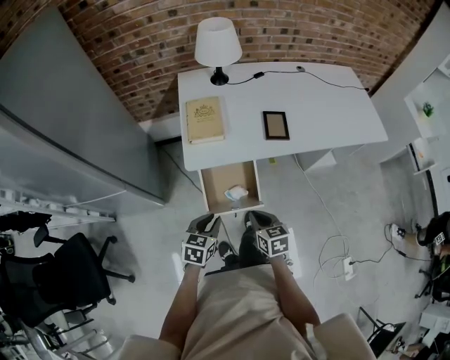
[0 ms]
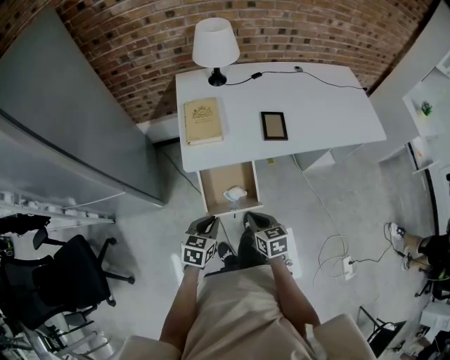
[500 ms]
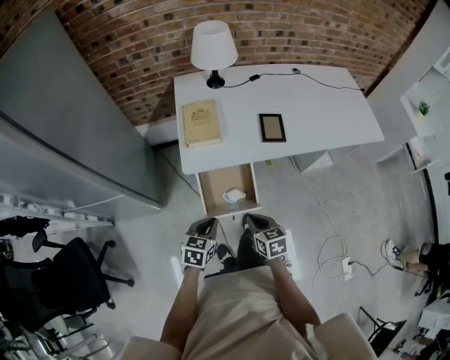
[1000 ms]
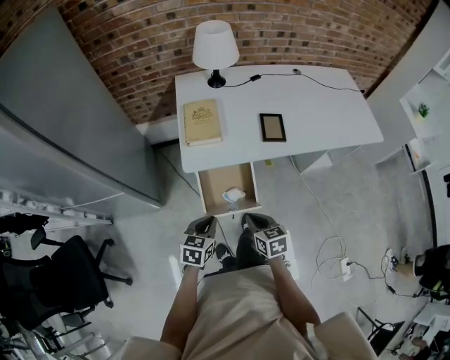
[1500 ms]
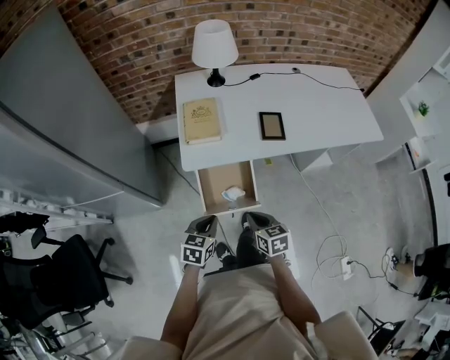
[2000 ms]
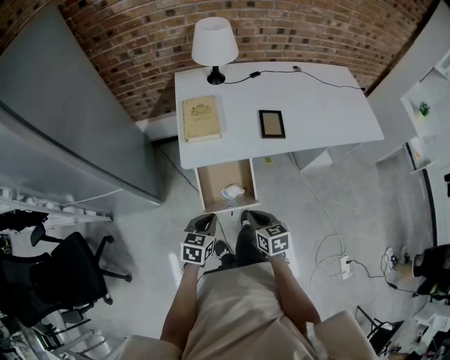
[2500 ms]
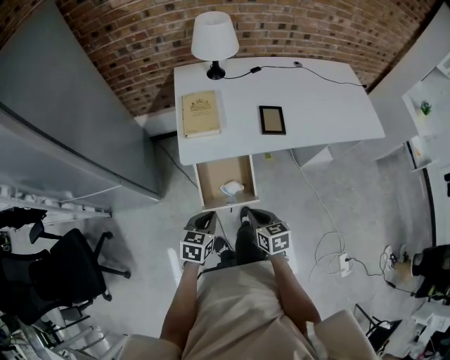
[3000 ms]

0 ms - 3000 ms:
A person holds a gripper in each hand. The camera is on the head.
0 ms - 1500 ms: Both grippers stay about where they are.
1500 ms - 3000 ms: There are only small adjustments of the grippers.

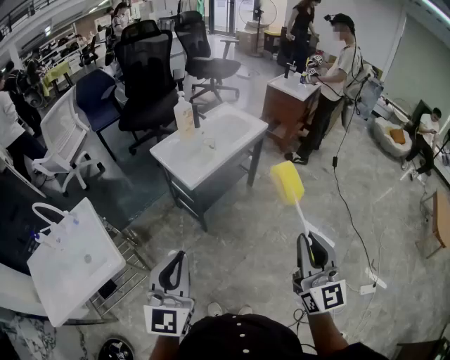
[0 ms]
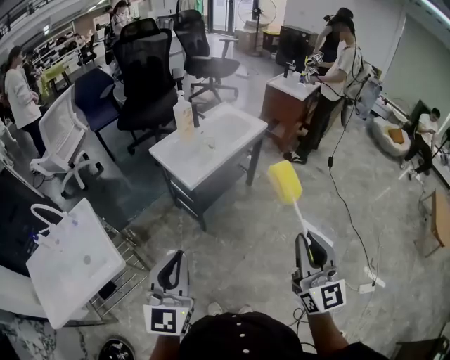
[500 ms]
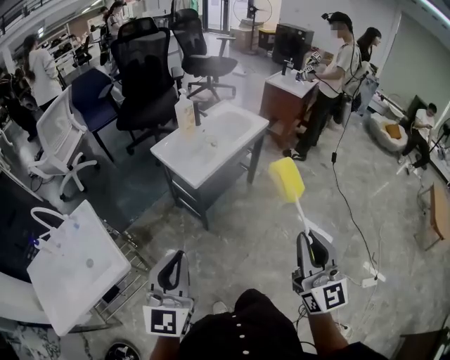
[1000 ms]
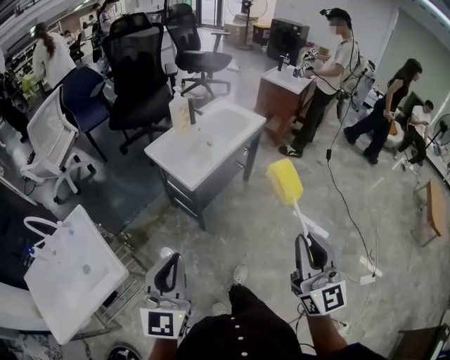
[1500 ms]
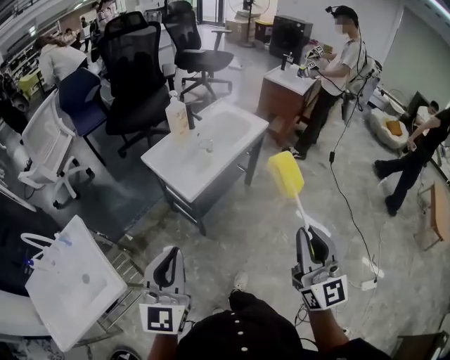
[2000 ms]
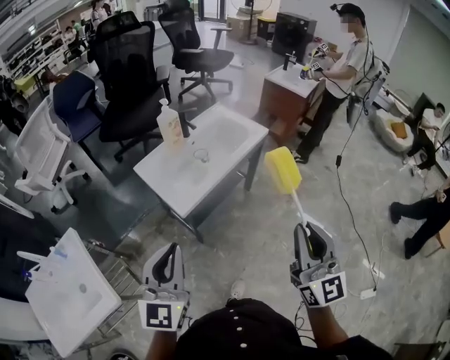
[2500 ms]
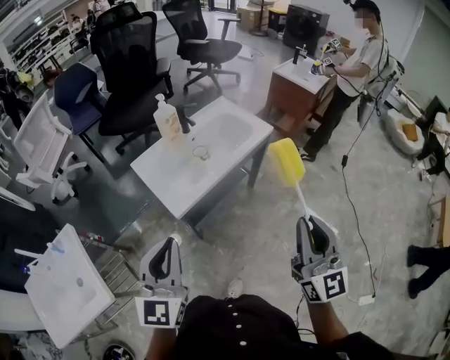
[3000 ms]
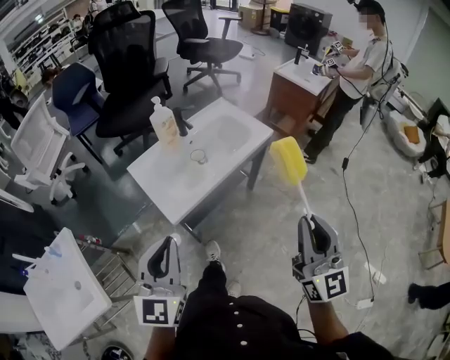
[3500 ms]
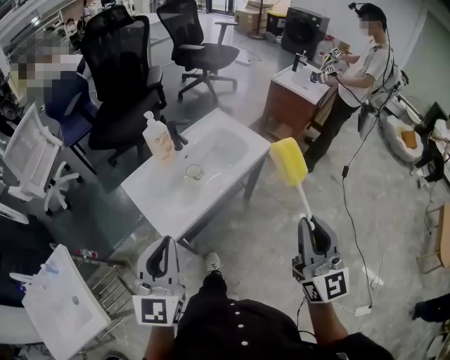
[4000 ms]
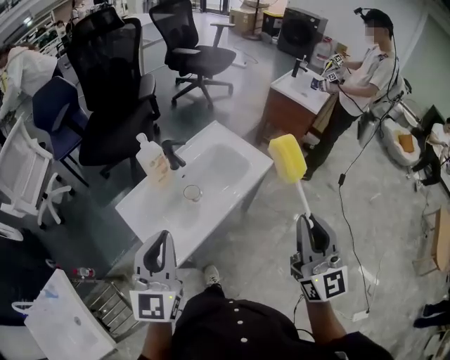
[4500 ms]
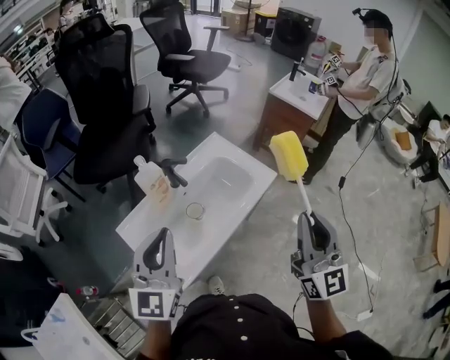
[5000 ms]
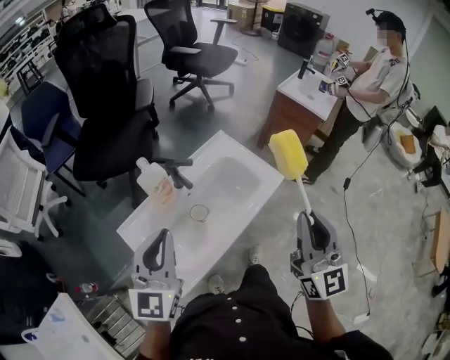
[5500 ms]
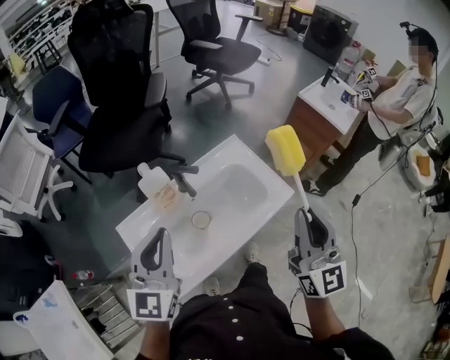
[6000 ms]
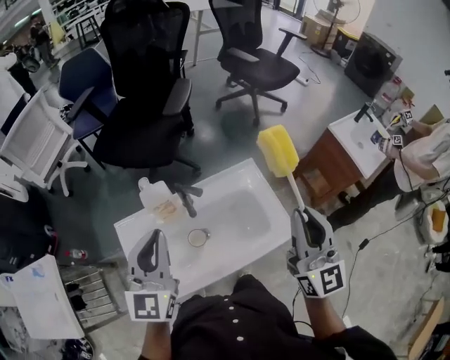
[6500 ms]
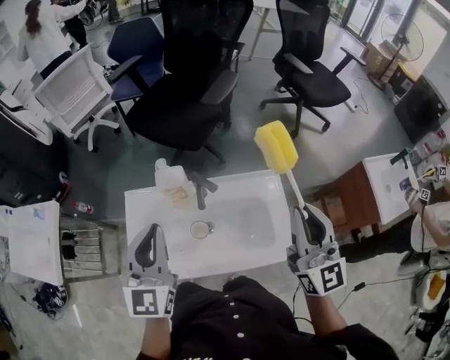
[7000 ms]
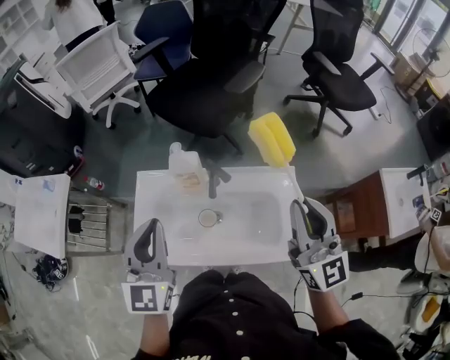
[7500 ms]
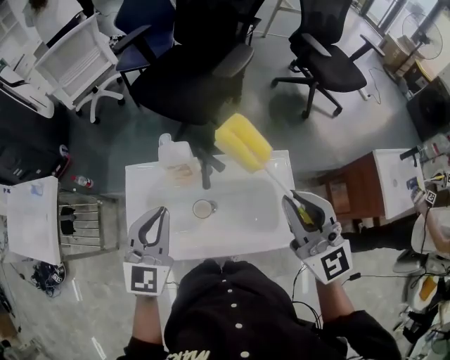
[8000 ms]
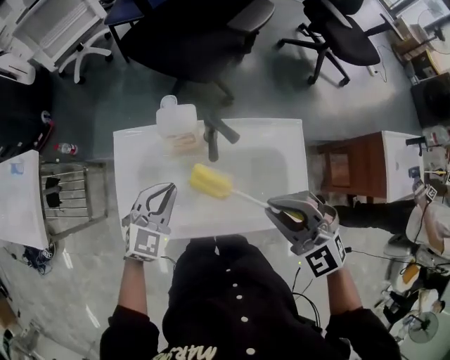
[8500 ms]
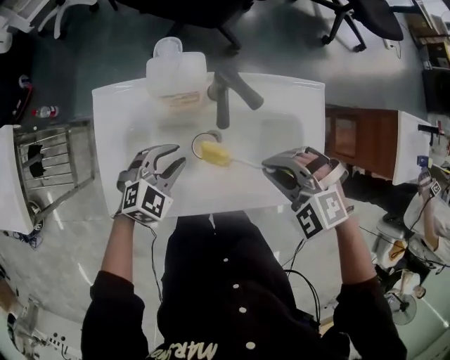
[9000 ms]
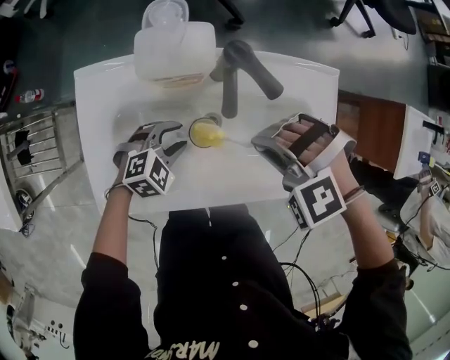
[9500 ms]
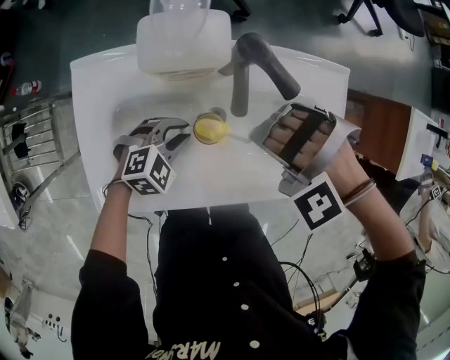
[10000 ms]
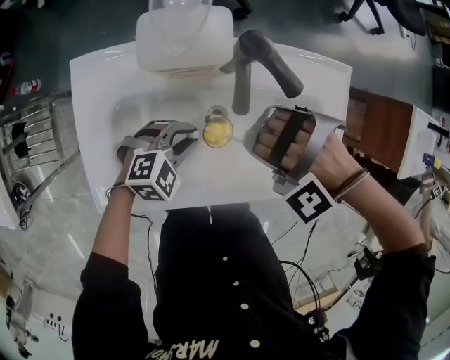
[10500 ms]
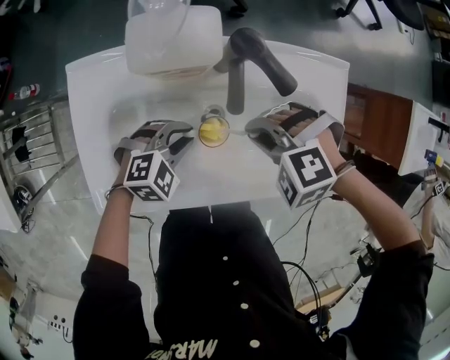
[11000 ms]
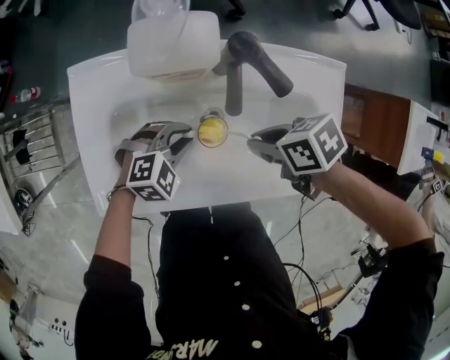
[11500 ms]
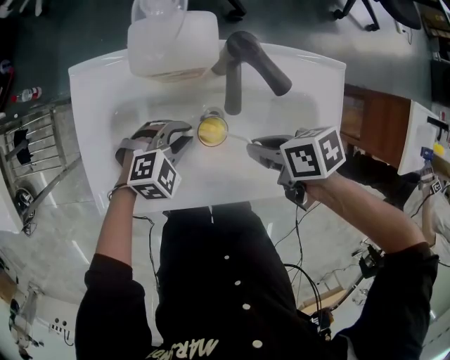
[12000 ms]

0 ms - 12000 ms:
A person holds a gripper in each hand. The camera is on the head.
0 ms - 2000 ms: Both grippers travel together forward, approximately 15 cm.
2000 ms - 4000 ms: Both grippers travel together forward, some 25 cm.
4000 ms - 6000 ms: The grippers both shift forward by about 35 cm.
6000 ms - 8000 ms: The left gripper shifts by approximately 5 cm, and rotates some 30 degrees, while the right gripper changes place by approximately 20 cm, and swivels some 50 degrees.
8000 ms - 10000 ms: Both grippers move downward, approximately 35 cm. The right gripper tips its fingers downward by about 80 degrees, while the left gripper angles its fingers downward, by about 40 degrees, and opens, then closes once more.
10000 ms - 12000 ms: The right gripper moves downward, approximately 5 cm, and rolls clockwise, seen from behind, by about 130 degrees.

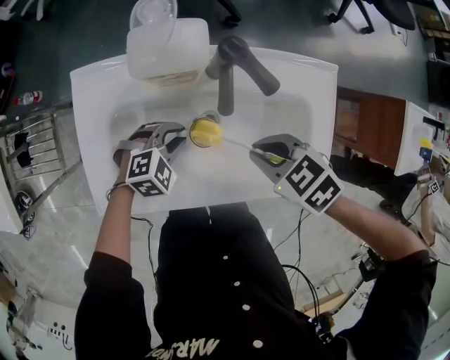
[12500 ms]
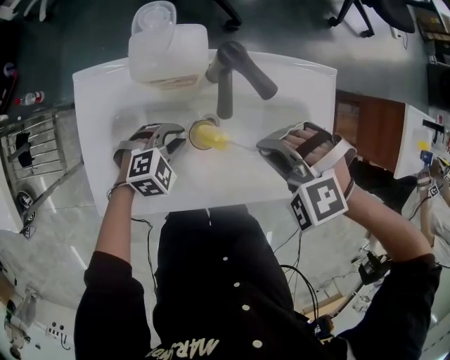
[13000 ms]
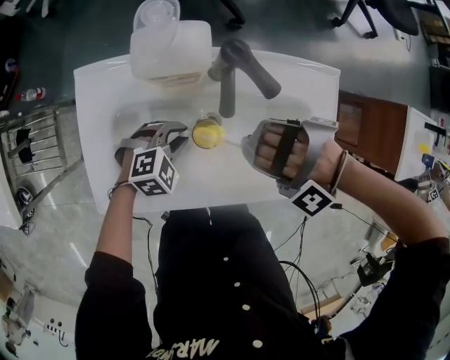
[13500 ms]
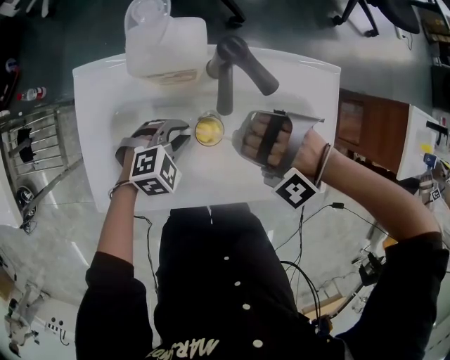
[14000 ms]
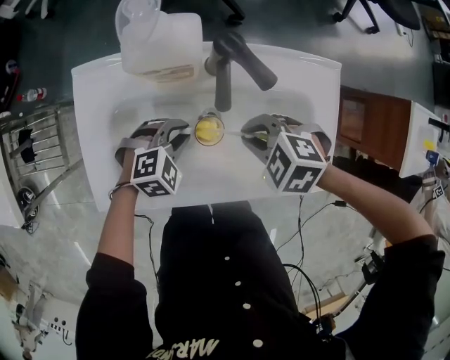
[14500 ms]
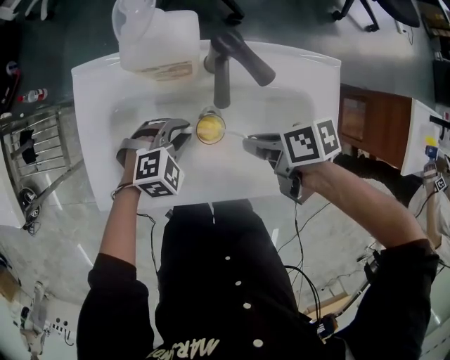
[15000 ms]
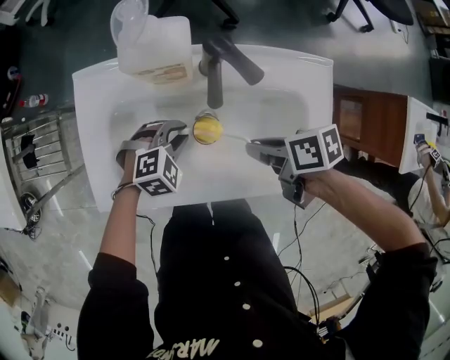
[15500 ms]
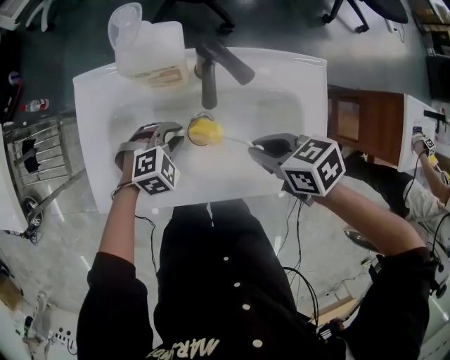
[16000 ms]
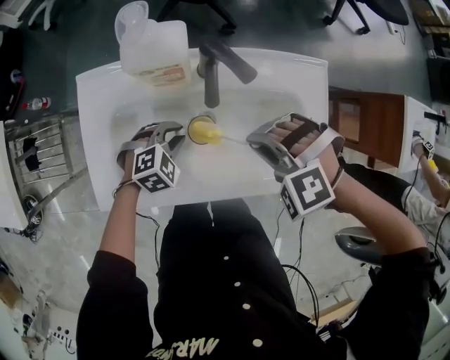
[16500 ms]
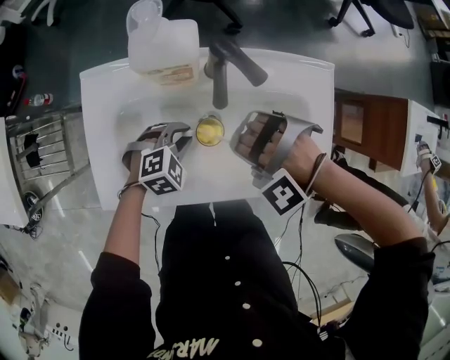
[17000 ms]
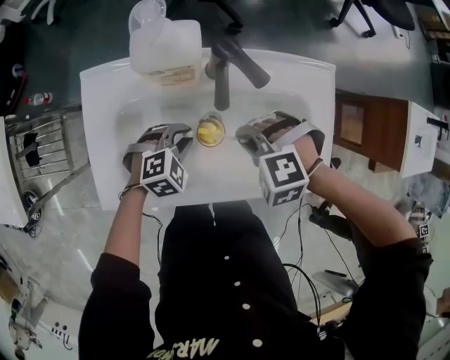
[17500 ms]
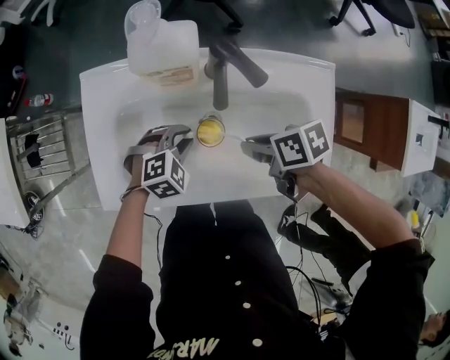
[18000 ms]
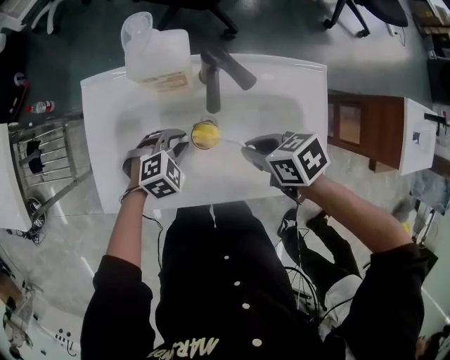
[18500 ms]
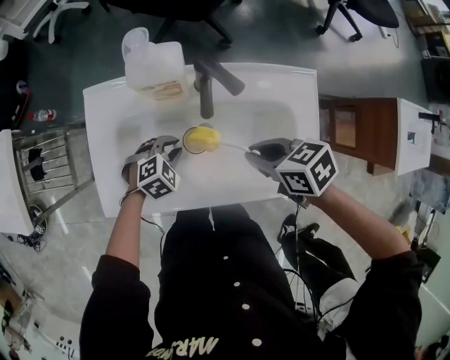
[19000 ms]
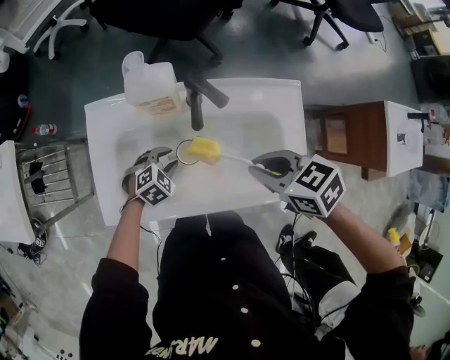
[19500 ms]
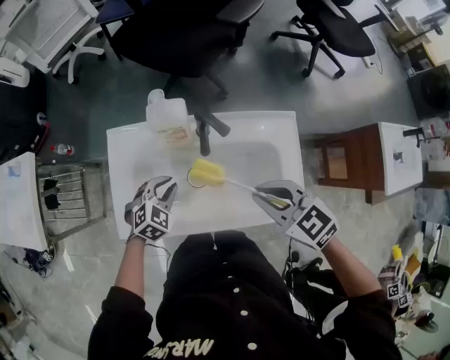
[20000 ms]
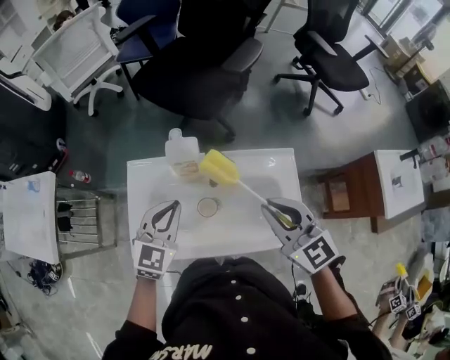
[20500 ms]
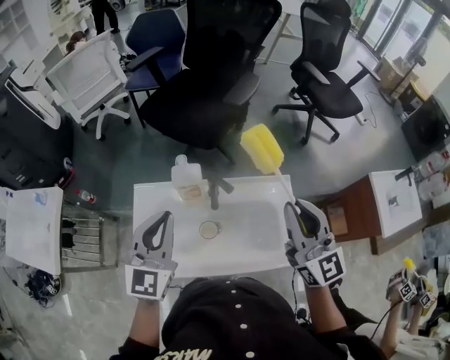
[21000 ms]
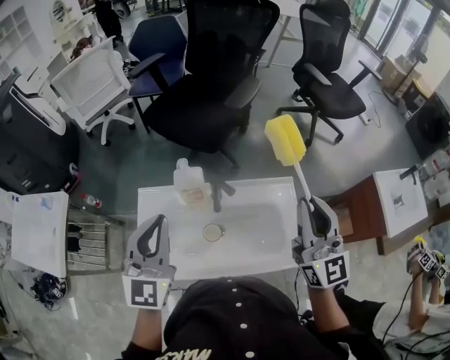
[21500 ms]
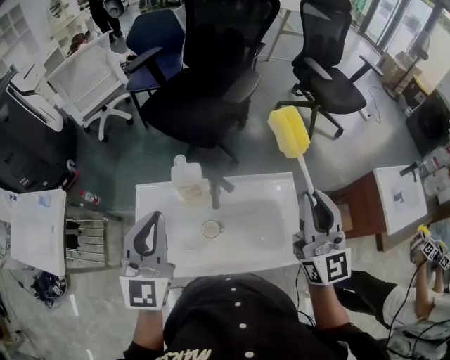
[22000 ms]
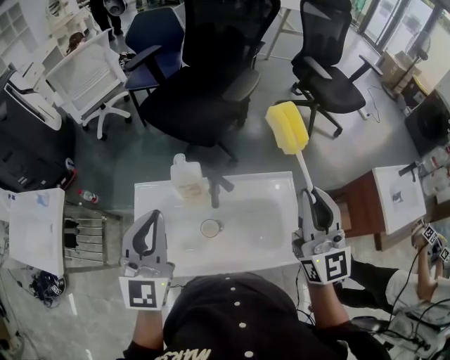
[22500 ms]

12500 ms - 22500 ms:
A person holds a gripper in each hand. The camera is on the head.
12500 ms - 14500 ms: The right gripper changes its angle by roughly 30 degrees.
14500 ms - 16500 ms: The right gripper is displaced upward by some 5 cm, and changes its angle by about 40 degrees.
16500 ms - 18500 ms: The right gripper rotates around the line of its fingers by some 90 degrees, clockwise from behind.
18500 ms - 20500 ms: The two grippers go approximately 30 cm upward. The left gripper tips its fingers upward by roughly 40 degrees. Meanwhile the right gripper tilts its fingers some 40 degrees upward.
20500 ms - 22500 ms: The left gripper is displaced upward by roughly 15 cm, and rotates roughly 30 degrees. The right gripper goes approximately 15 cm upward and to the right, and rotates some 30 degrees.

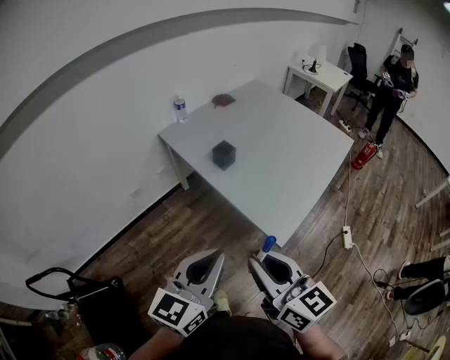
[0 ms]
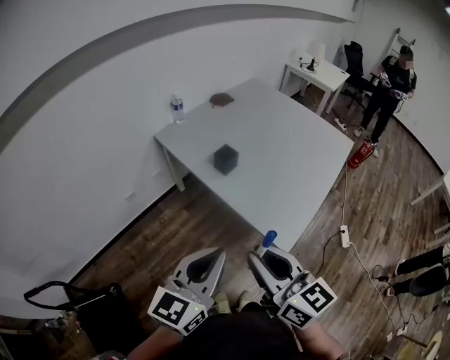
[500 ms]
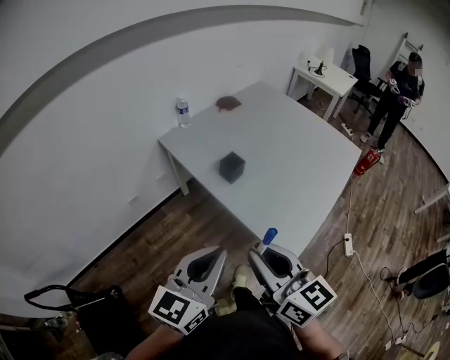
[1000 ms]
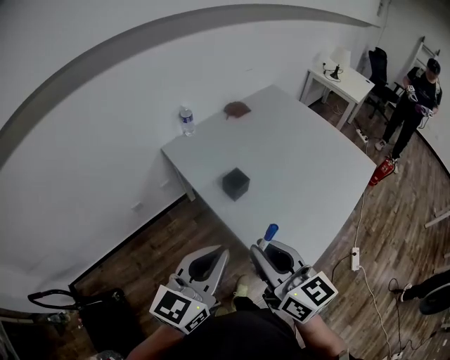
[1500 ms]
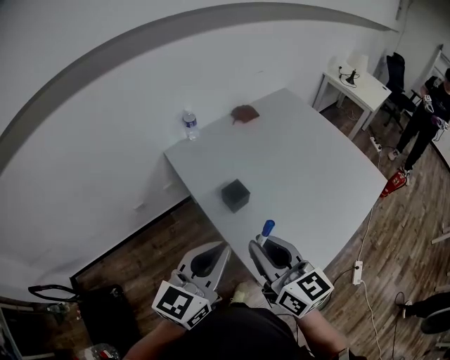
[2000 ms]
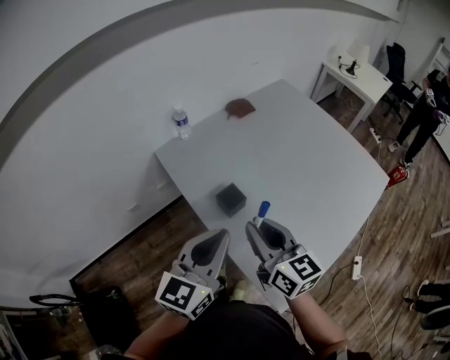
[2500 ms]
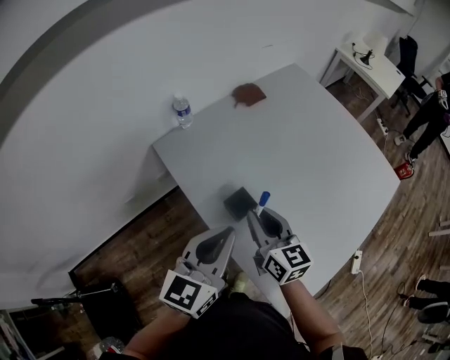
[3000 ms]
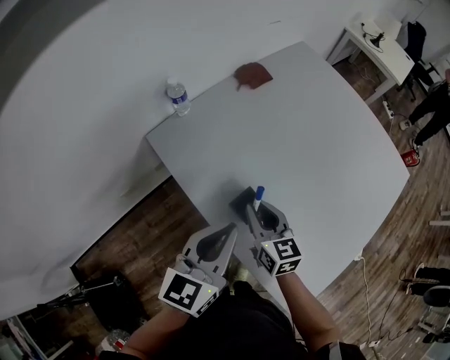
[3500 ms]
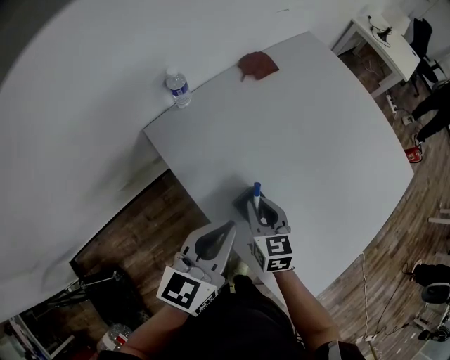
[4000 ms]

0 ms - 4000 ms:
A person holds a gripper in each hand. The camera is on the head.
0 ms - 2000 ms: The grippers both shift forward by about 25 cm.
2000 ms - 4000 ms: The left gripper heads forward and downward, covering roughly 25 cm. Meanwhile the right gripper is displaced downward and forward by some 35 cm, and turns by approximately 30 degrees.
